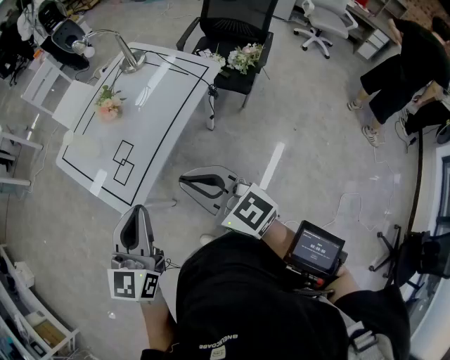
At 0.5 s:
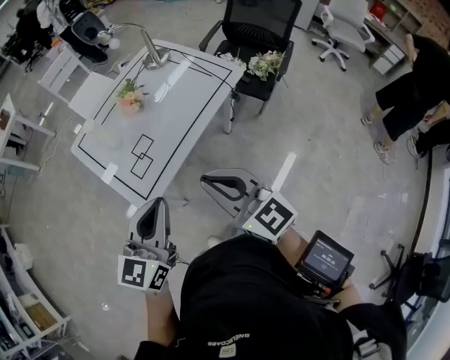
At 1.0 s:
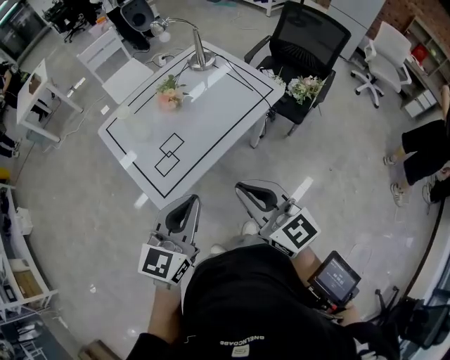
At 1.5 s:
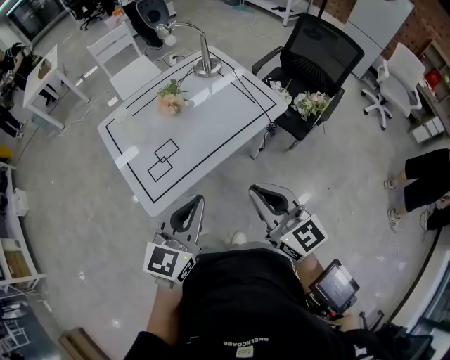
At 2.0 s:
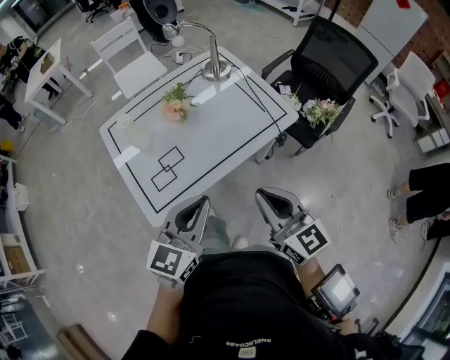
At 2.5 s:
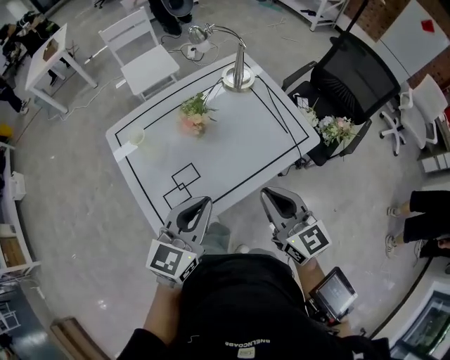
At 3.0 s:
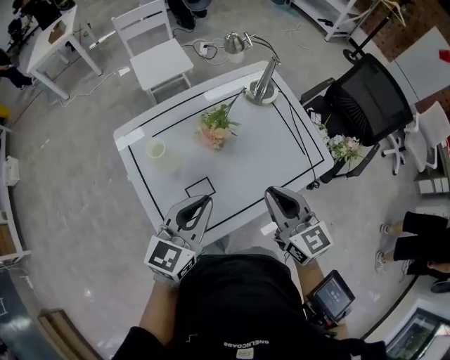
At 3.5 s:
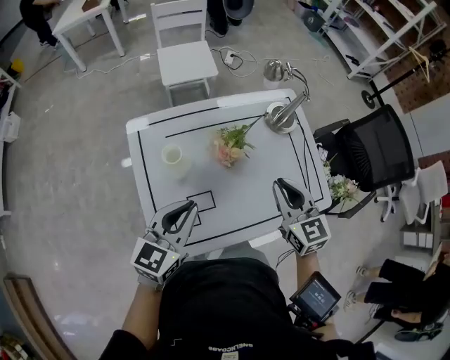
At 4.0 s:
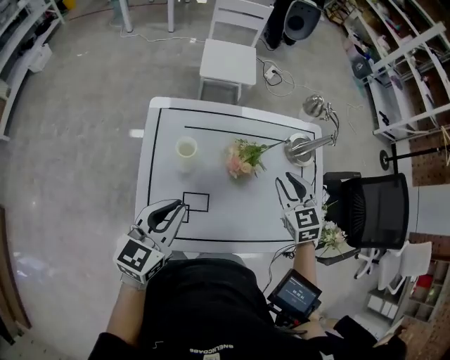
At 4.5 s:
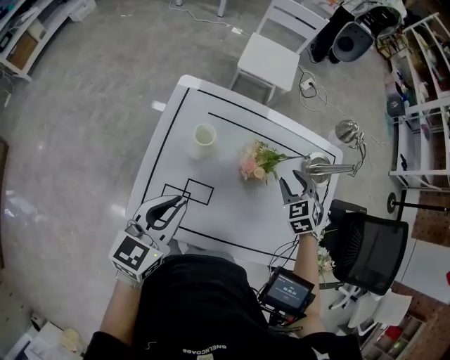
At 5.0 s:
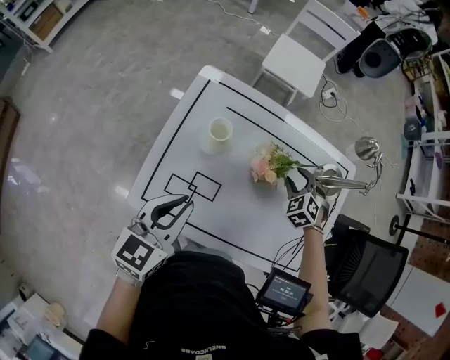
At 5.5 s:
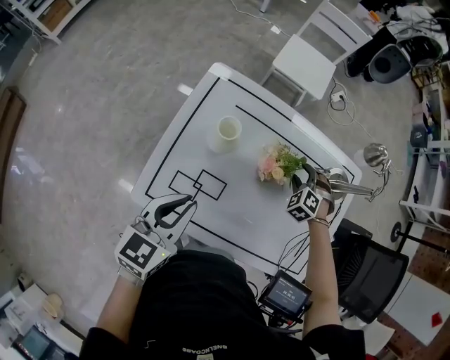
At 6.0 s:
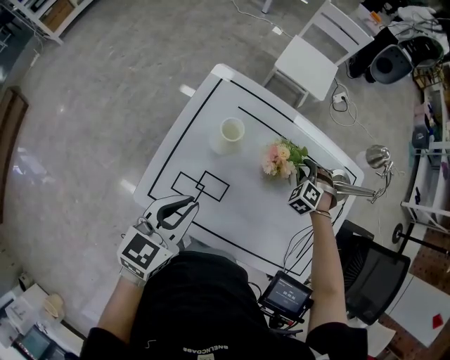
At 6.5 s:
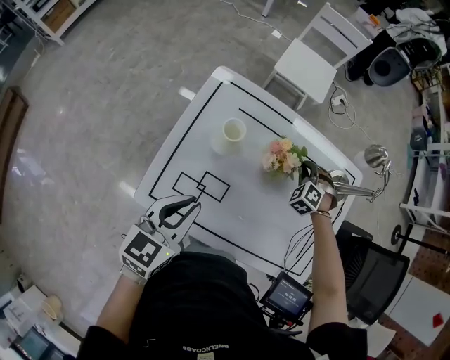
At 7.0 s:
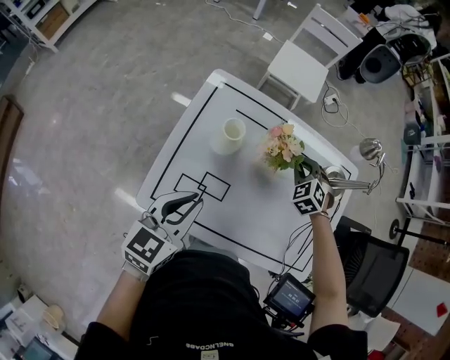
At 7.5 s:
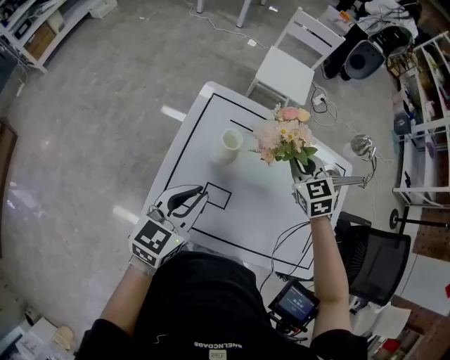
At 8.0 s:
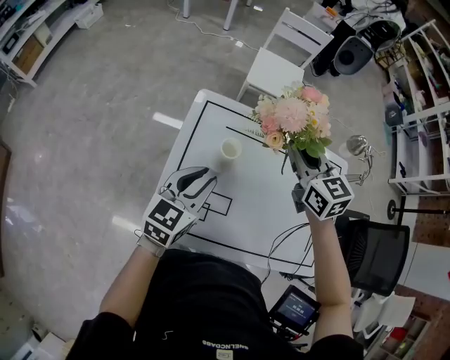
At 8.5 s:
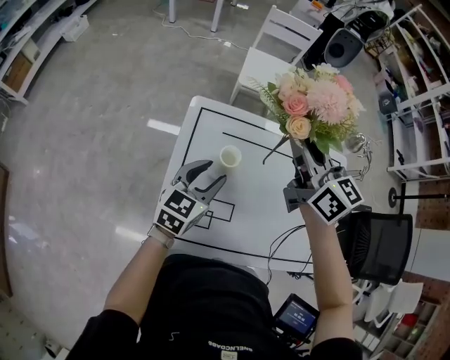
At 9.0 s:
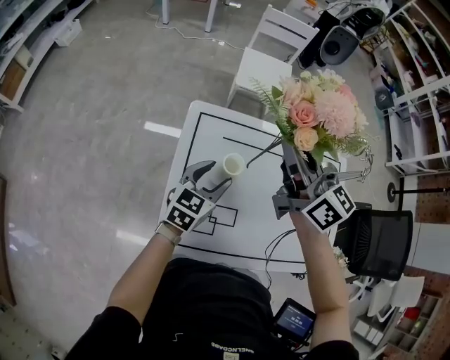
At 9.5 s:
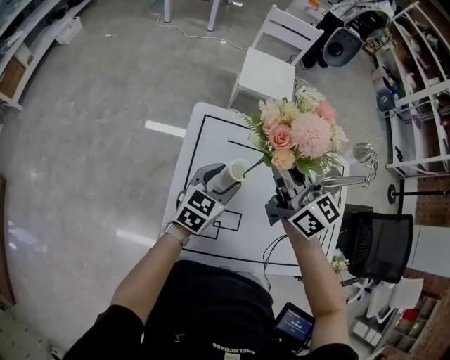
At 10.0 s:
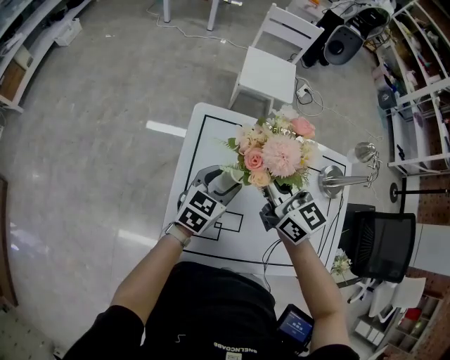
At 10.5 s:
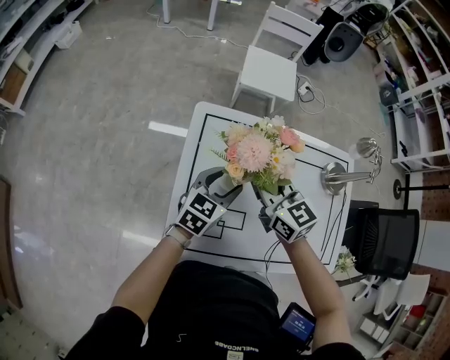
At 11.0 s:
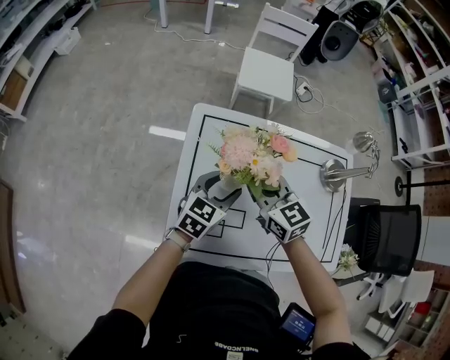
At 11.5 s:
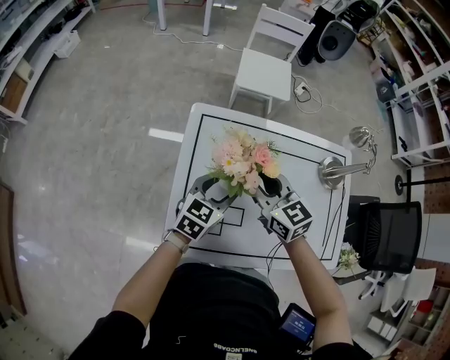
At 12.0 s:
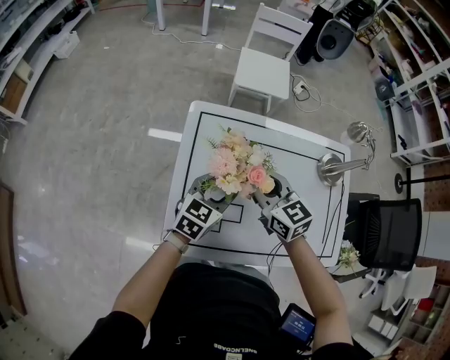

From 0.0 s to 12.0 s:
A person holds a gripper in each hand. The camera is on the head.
From 0.0 s to 2.0 s: Both grippers travel together forward and to the right, some 15 cm.
From 2.0 s to 4.0 s: The left gripper is displaced forward and to the left by approximately 30 cm, and changes its angle by about 30 degrees, while the right gripper heads forward, covering roughly 40 cm, swivels some 40 degrees, and opens its fingers.
From 4.0 s to 6.0 s: The right gripper goes some 25 cm downward and forward, and twists some 60 degrees counterclockwise, seen from behind. Meanwhile the left gripper shifts by approximately 5 cm.
From 6.0 s to 8.0 s: The right gripper is displaced upward and to the left by about 35 cm, points its fingers some 40 degrees further upward, and closes its fingers. The left gripper is displaced forward by about 10 cm.
From 8.0 s to 10.0 s: The left gripper travels downward and forward by roughly 10 cm, and opens; the right gripper heads to the left, covering some 10 cm, and moves approximately 10 cm upward and comes back.
From 10.0 s to 12.0 s: The left gripper shifts approximately 5 cm backward; the right gripper is displaced downward and backward by some 10 cm.

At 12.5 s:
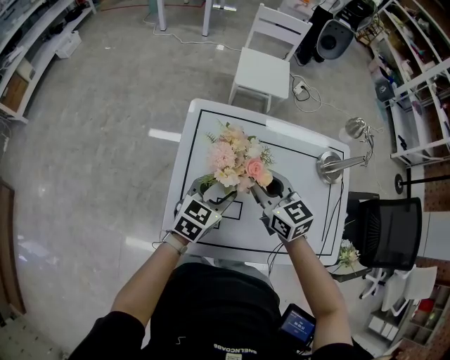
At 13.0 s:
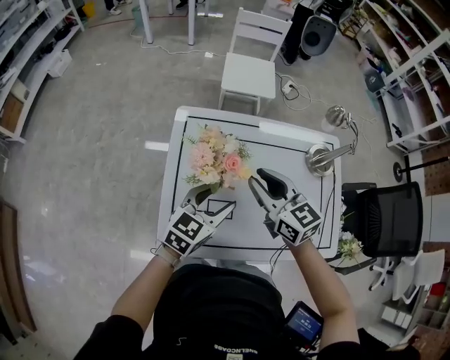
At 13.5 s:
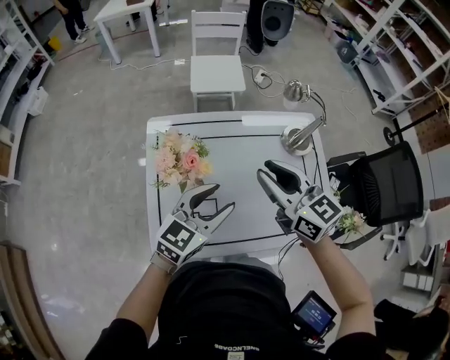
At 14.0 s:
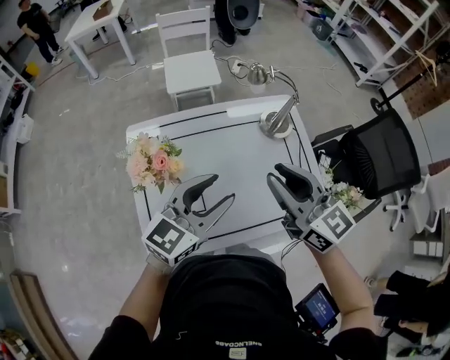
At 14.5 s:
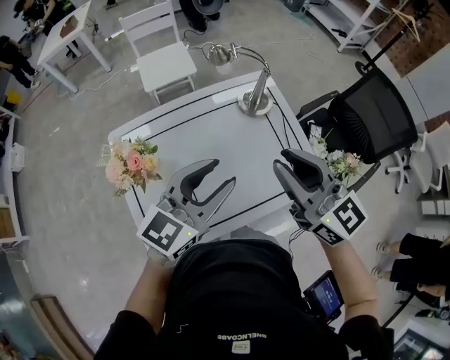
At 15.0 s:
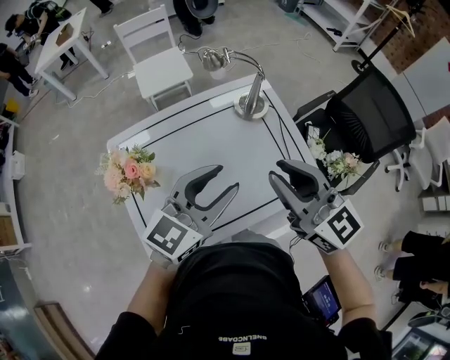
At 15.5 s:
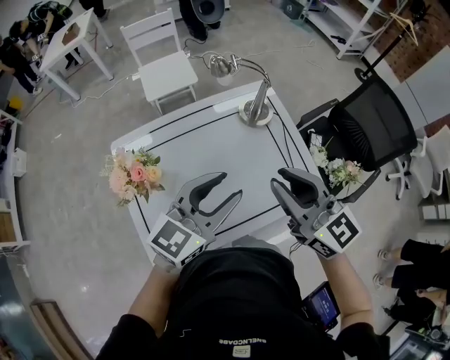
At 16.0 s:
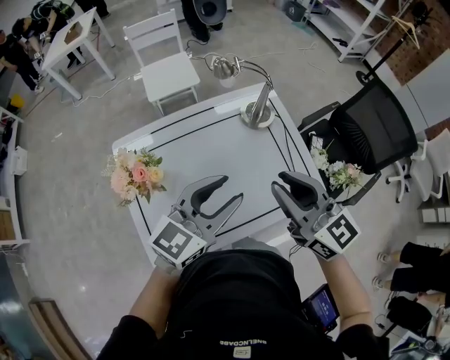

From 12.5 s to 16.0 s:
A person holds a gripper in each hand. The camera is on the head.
From 12.5 s to 14.5 s: The left gripper goes about 20 cm upward, and swivels about 40 degrees, while the right gripper shifts by about 35 cm, and rotates about 30 degrees.
From 14.5 s to 16.0 s: The grippers stay close to where they were, moving slightly.

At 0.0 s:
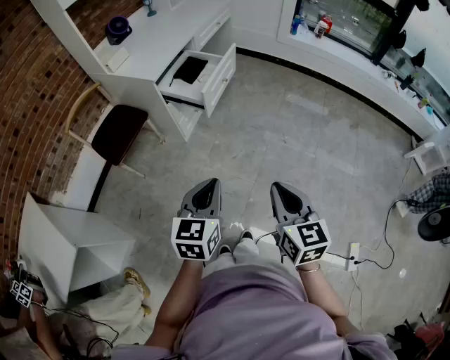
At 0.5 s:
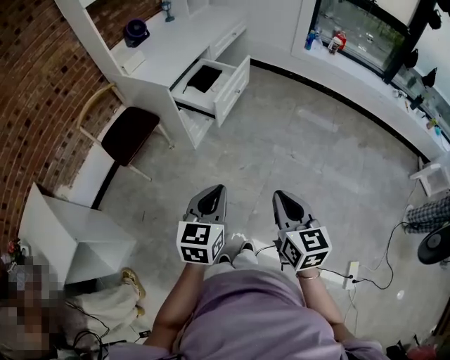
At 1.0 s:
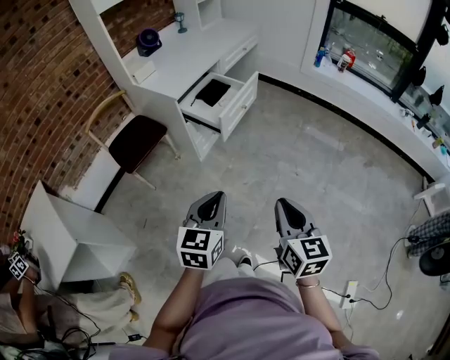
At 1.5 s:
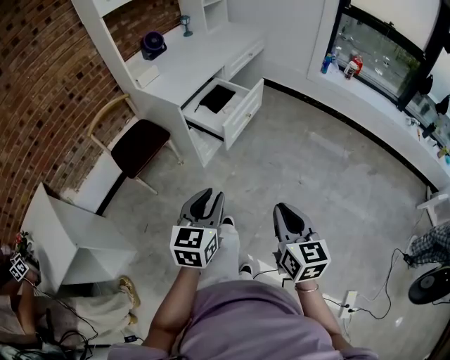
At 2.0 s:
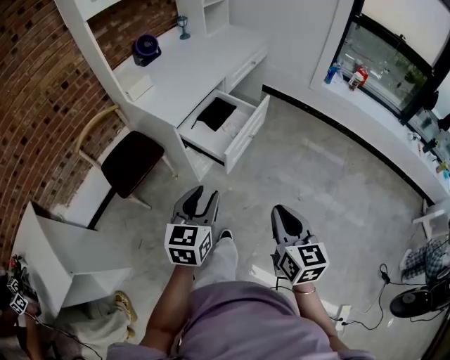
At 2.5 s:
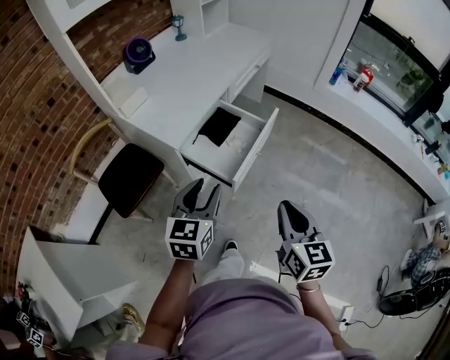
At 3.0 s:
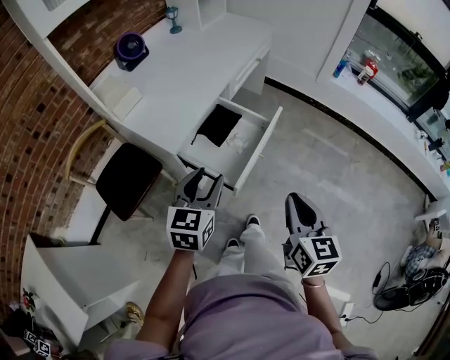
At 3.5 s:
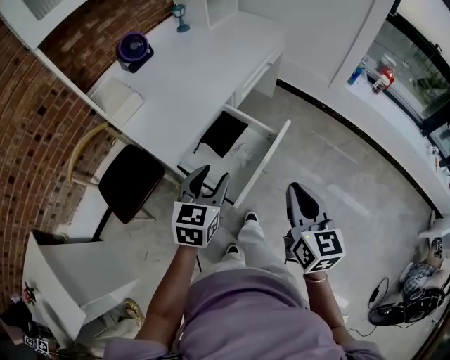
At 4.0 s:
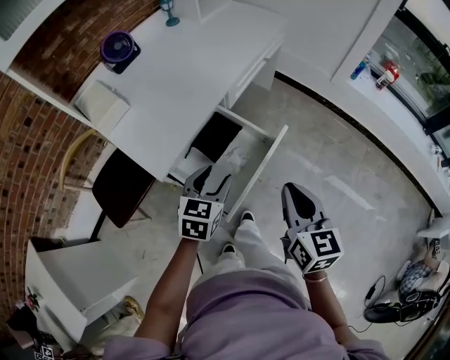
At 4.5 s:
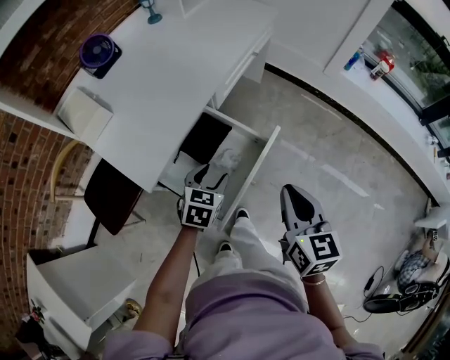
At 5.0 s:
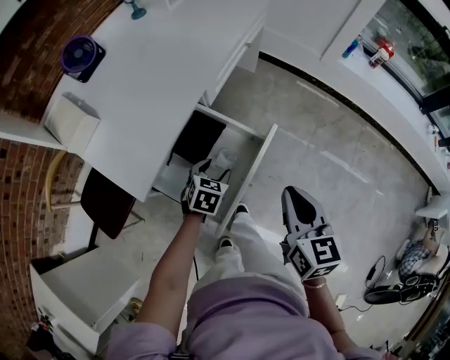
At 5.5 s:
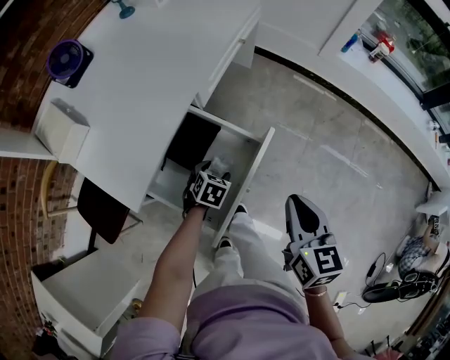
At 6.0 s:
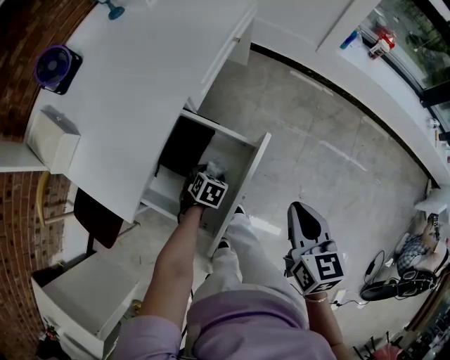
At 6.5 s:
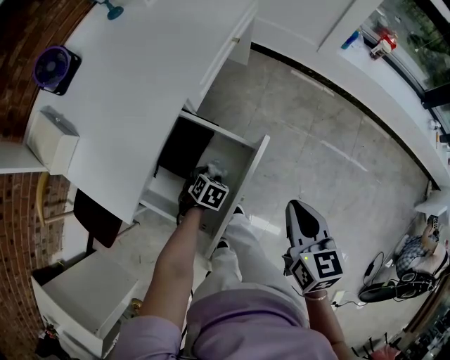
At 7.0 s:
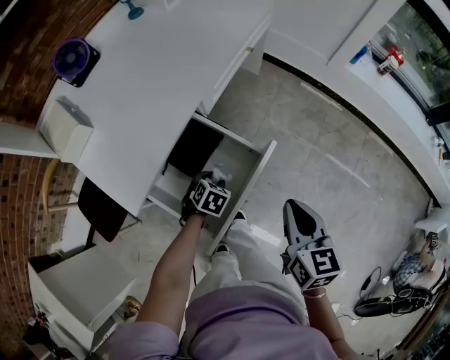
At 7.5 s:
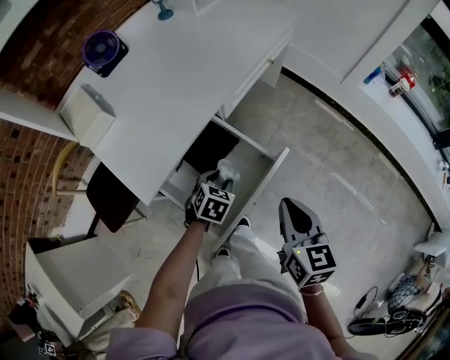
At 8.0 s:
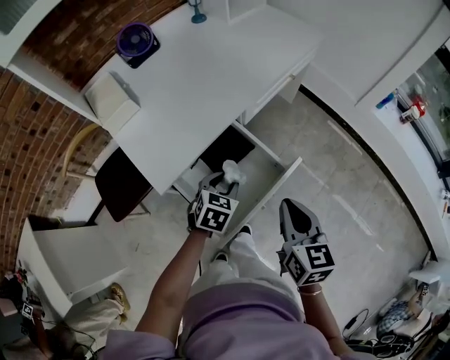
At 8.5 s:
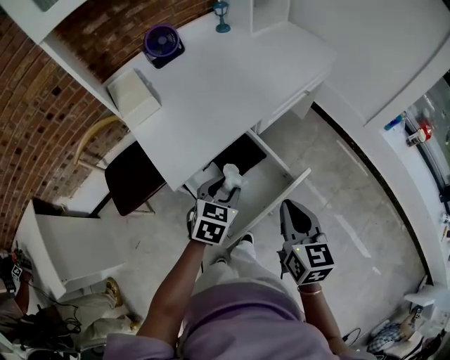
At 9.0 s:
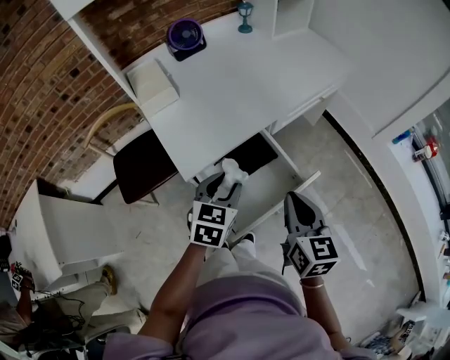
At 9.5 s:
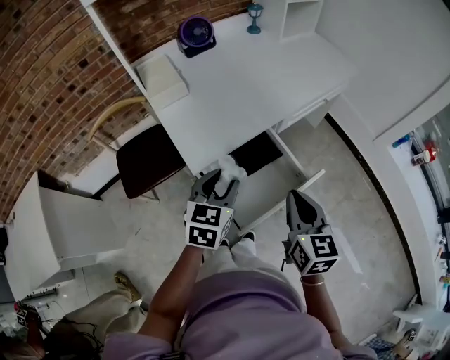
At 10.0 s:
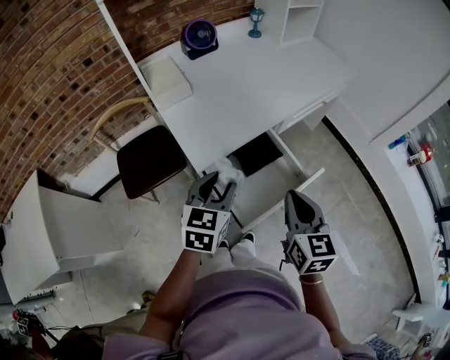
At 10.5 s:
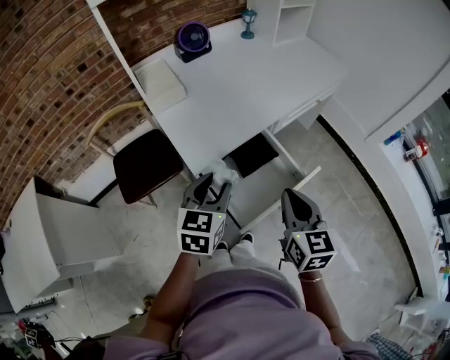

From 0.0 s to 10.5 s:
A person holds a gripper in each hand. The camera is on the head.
From 0.0 s to 2.0 s: The grippers both shift forward by roughly 20 cm. The left gripper opens up.
From 2.0 s to 4.0 s: The grippers both shift forward by some 35 cm.
From 4.0 s to 6.5 s: The right gripper shifts roughly 15 cm forward, downward and to the right. Meanwhile the left gripper travels downward by approximately 25 cm, and tilts its fingers some 40 degrees downward.
From 6.5 s to 8.5 s: The right gripper is displaced to the left and upward by approximately 15 cm, and rotates about 20 degrees, while the left gripper shifts about 25 cm upward, and tips its fingers upward by about 30 degrees.
From 8.5 s to 10.5 s: The left gripper heads to the left, upward and backward, covering roughly 15 cm, and rotates some 20 degrees; the right gripper heads to the left, covering approximately 5 cm.
